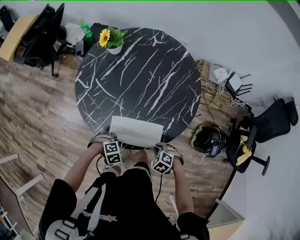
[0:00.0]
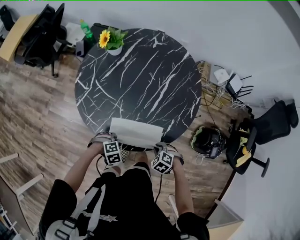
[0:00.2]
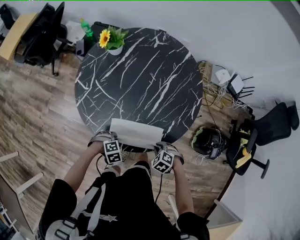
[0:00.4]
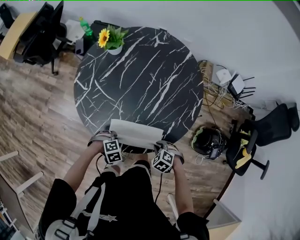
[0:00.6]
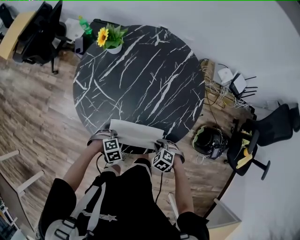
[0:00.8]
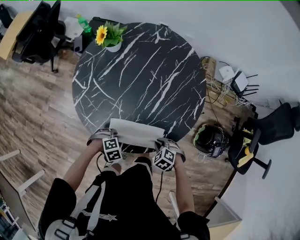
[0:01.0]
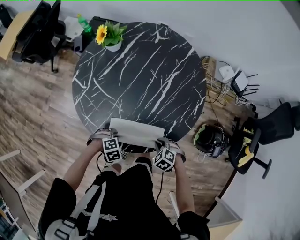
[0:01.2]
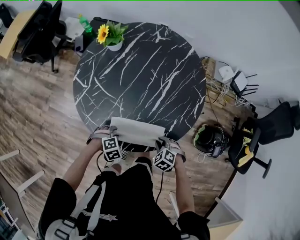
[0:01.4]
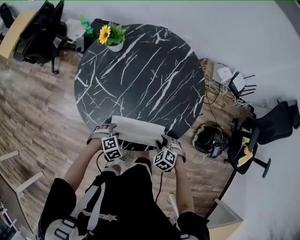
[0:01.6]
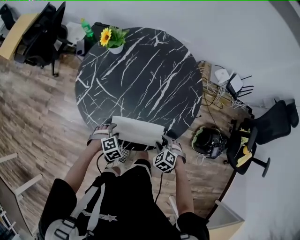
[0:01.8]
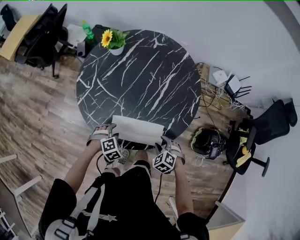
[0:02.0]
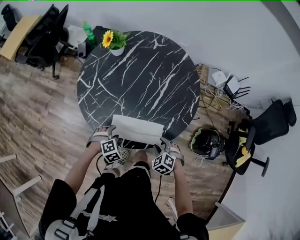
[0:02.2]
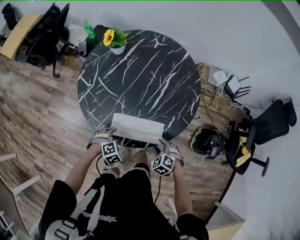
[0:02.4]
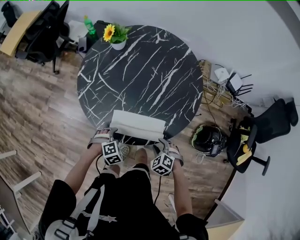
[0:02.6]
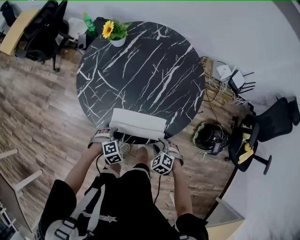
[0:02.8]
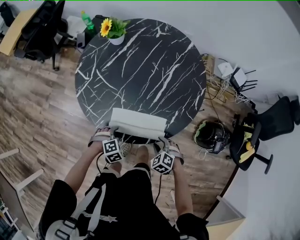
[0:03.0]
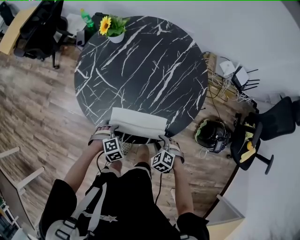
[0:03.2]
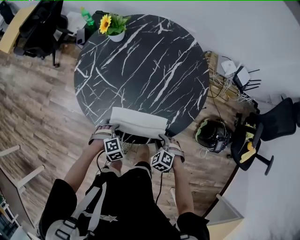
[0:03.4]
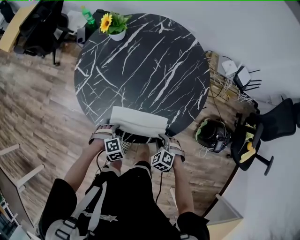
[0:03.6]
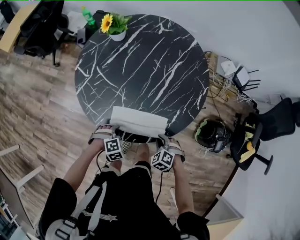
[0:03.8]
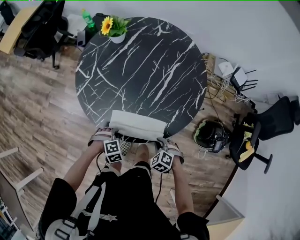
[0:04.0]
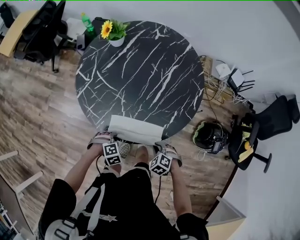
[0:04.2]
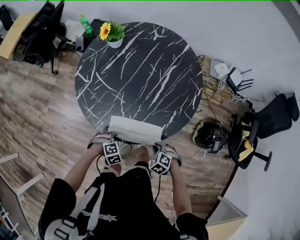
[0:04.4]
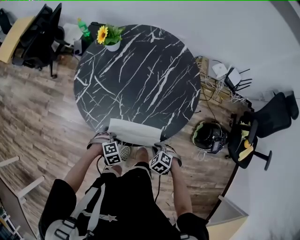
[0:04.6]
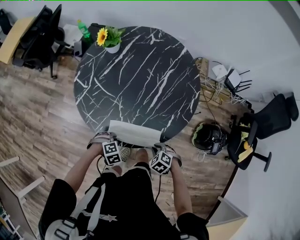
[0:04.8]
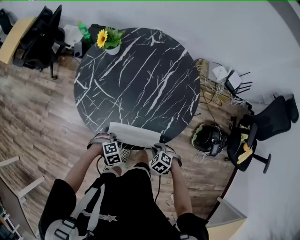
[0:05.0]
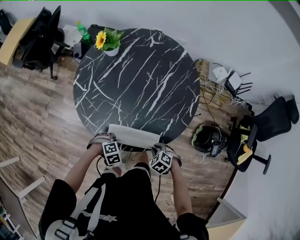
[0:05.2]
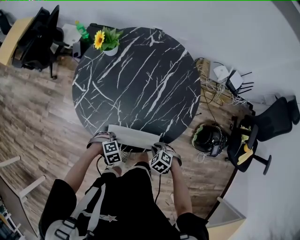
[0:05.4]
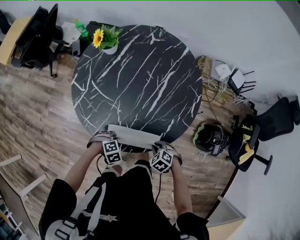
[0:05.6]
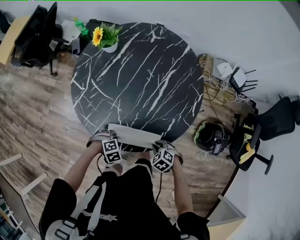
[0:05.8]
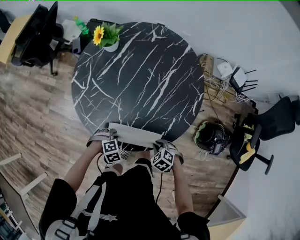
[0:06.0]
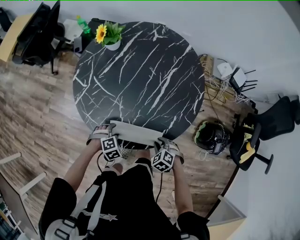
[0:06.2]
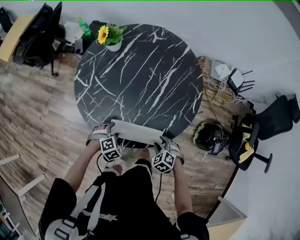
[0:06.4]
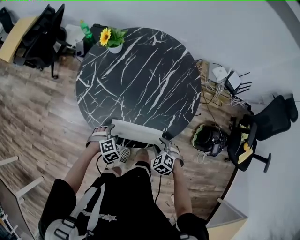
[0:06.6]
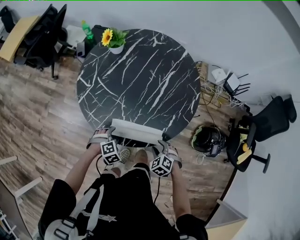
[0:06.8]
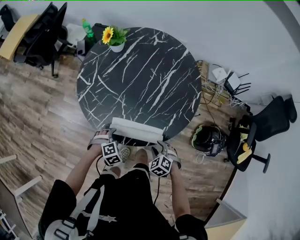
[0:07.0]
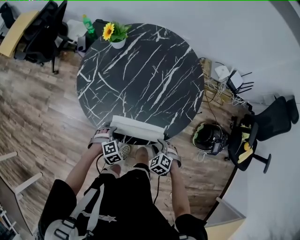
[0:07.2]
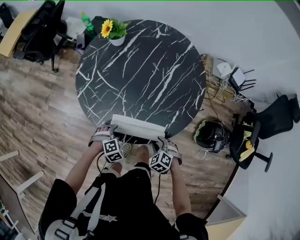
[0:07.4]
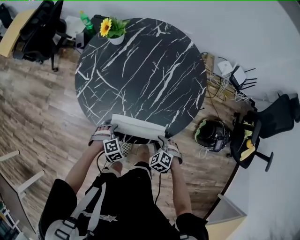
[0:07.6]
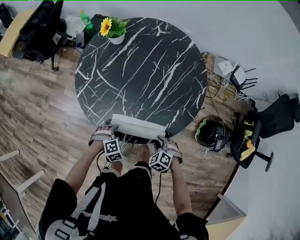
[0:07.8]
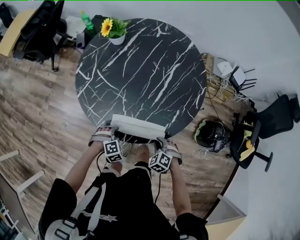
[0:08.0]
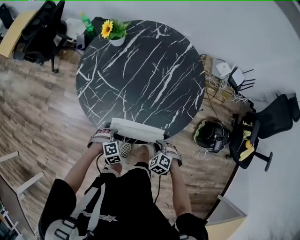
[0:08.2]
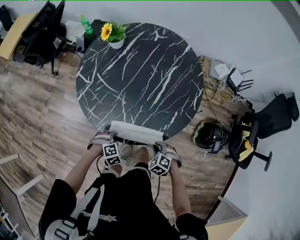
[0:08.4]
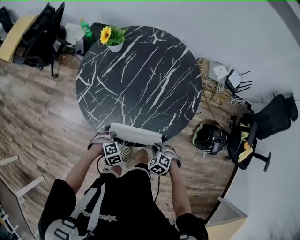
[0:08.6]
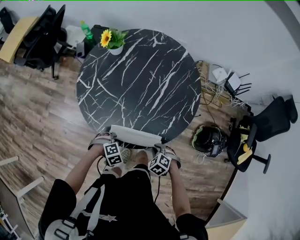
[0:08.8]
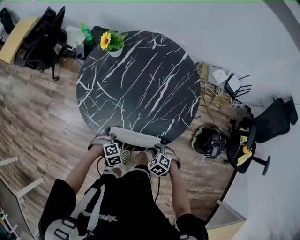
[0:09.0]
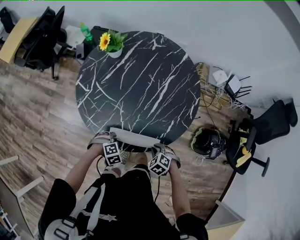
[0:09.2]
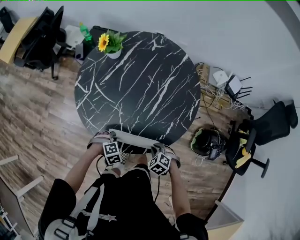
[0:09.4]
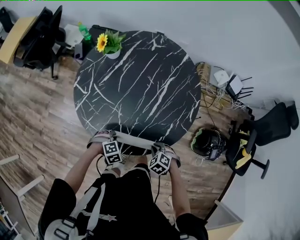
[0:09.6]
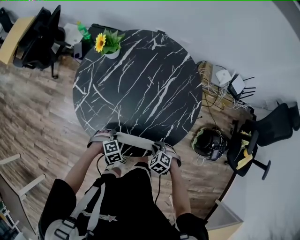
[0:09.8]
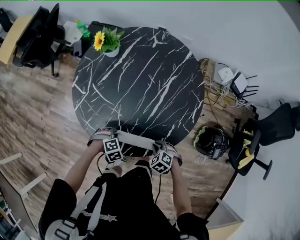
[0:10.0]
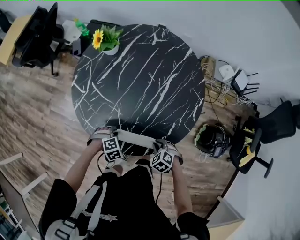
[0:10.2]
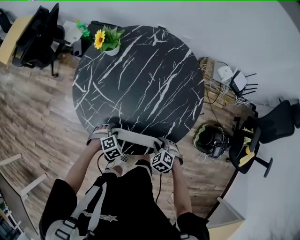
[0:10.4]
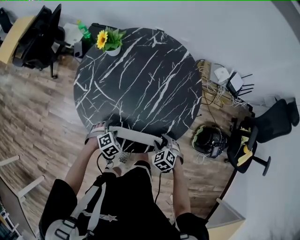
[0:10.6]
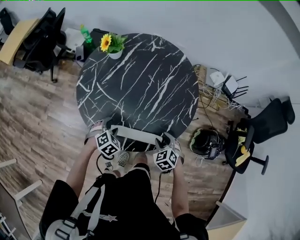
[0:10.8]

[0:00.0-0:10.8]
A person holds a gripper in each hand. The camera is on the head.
0:00.0 to 0:01.6: The left gripper shifts by approximately 5 cm, and opens up, while the right gripper changes place by some 5 cm, and opens up.
0:01.6 to 0:03.0: The right gripper shifts by some 5 cm. Meanwhile the left gripper moves about 5 cm.
0:03.0 to 0:04.6: The left gripper closes, while the right gripper closes up.
0:04.6 to 0:06.2: The left gripper changes place by roughly 5 cm, and opens its fingers. Meanwhile the right gripper moves about 5 cm.
0:06.2 to 0:07.8: The left gripper closes its fingers.
0:07.8 to 0:09.2: The grippers move only a little.
0:09.2 to 0:10.8: The right gripper moves some 10 cm, turns by approximately 20 degrees, and opens, while the left gripper shifts by some 10 cm, turns by approximately 30 degrees, and opens its fingers.

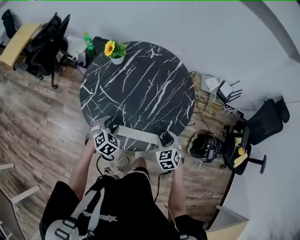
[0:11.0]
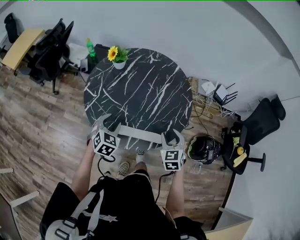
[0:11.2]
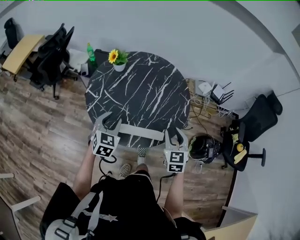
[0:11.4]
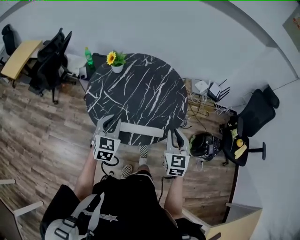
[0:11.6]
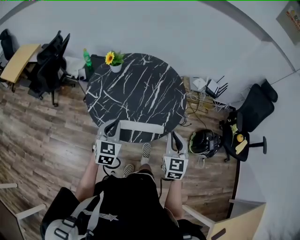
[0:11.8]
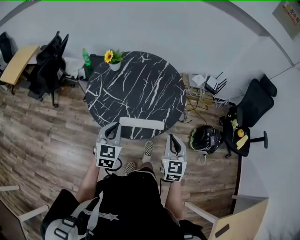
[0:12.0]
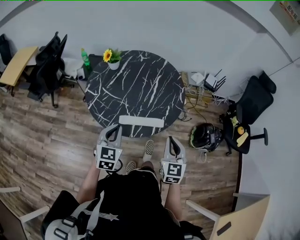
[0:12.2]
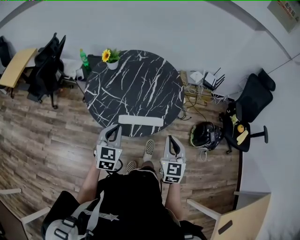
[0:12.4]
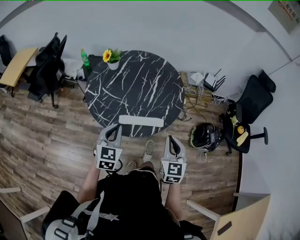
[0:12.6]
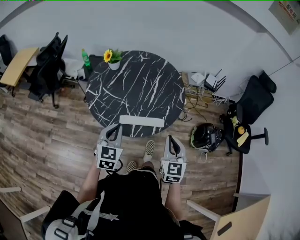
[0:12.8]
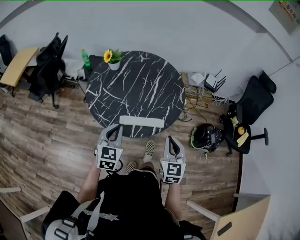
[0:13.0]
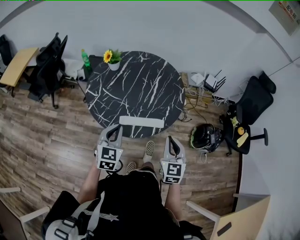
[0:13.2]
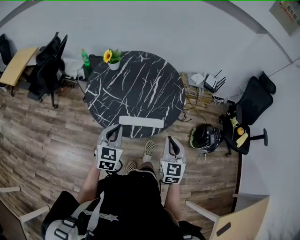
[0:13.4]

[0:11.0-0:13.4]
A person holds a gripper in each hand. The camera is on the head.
0:11.0 to 0:12.2: The left gripper travels upward and backward by about 20 cm, tips its fingers upward by roughly 30 degrees, and closes up; the right gripper goes about 25 cm backward and upward, points its fingers roughly 30 degrees further upward, and closes.
0:12.2 to 0:13.4: Both grippers stay put.

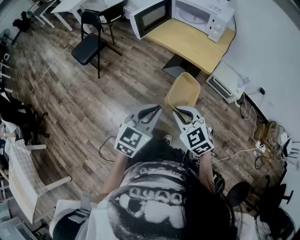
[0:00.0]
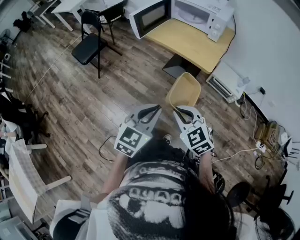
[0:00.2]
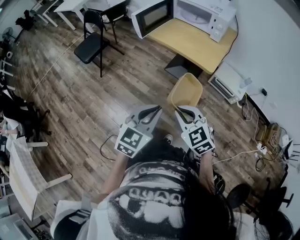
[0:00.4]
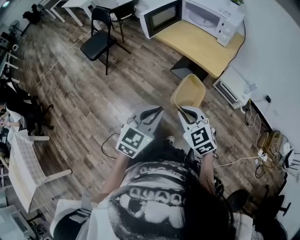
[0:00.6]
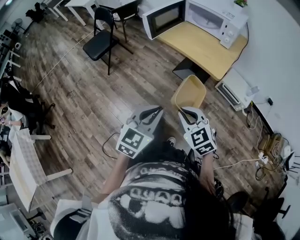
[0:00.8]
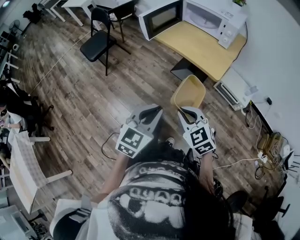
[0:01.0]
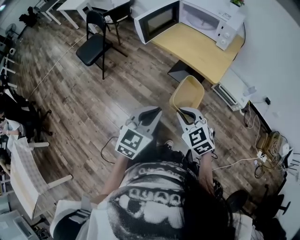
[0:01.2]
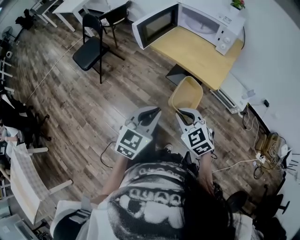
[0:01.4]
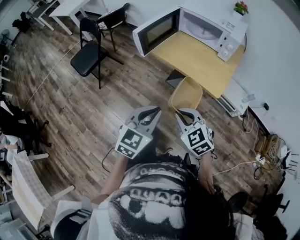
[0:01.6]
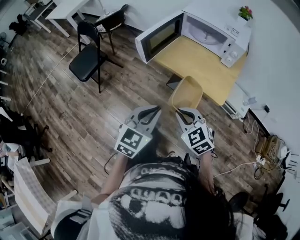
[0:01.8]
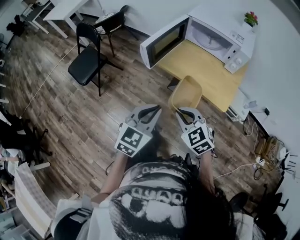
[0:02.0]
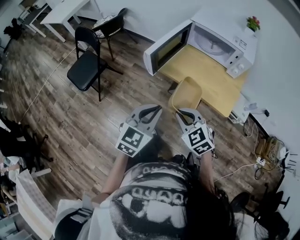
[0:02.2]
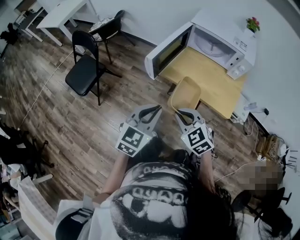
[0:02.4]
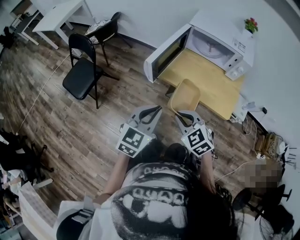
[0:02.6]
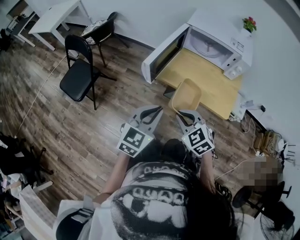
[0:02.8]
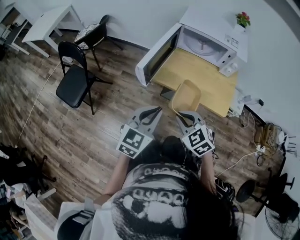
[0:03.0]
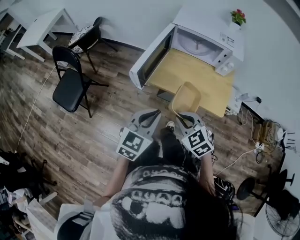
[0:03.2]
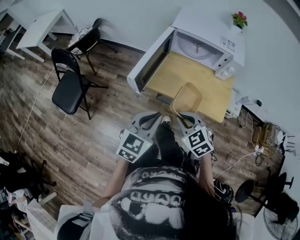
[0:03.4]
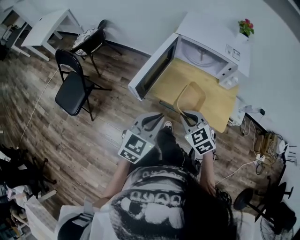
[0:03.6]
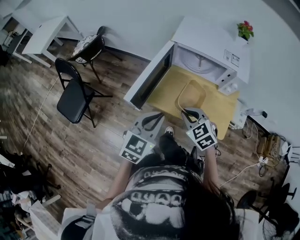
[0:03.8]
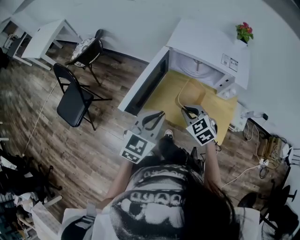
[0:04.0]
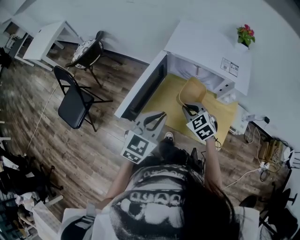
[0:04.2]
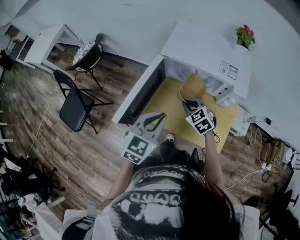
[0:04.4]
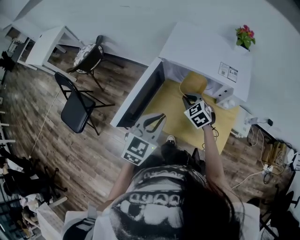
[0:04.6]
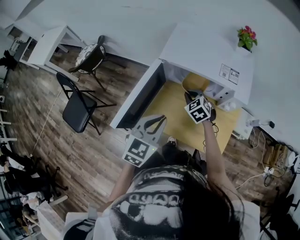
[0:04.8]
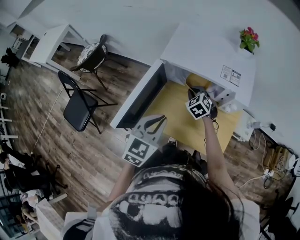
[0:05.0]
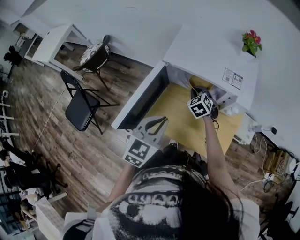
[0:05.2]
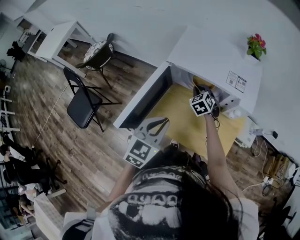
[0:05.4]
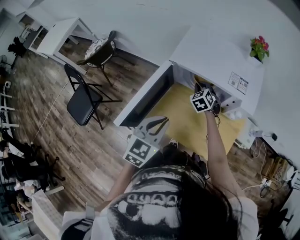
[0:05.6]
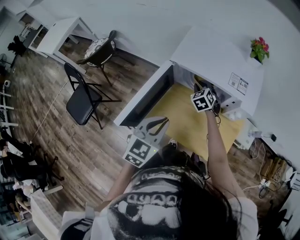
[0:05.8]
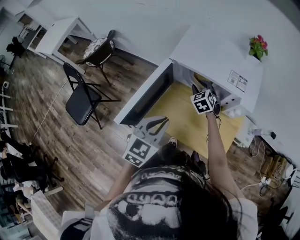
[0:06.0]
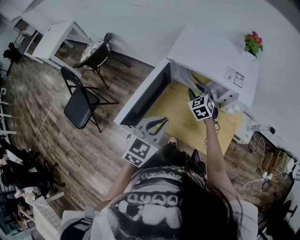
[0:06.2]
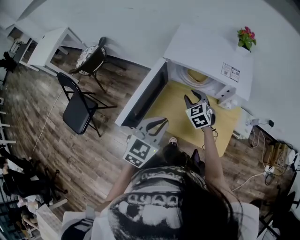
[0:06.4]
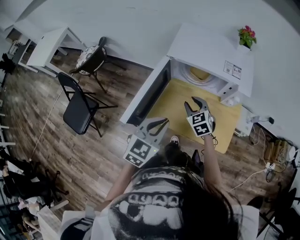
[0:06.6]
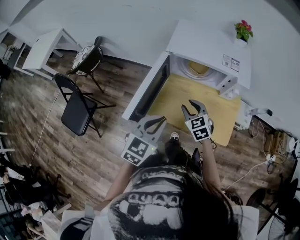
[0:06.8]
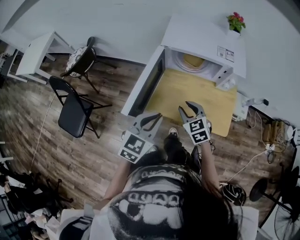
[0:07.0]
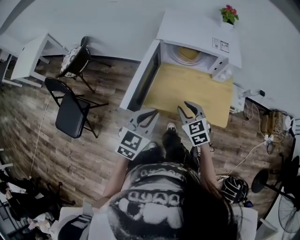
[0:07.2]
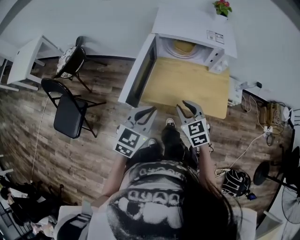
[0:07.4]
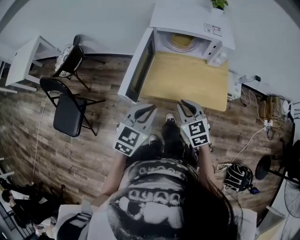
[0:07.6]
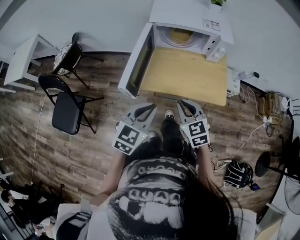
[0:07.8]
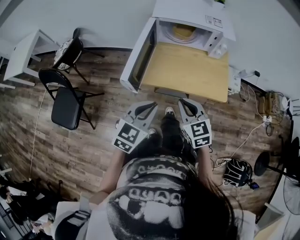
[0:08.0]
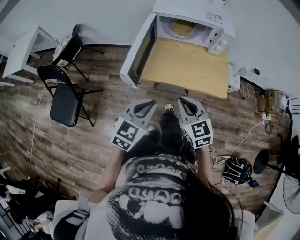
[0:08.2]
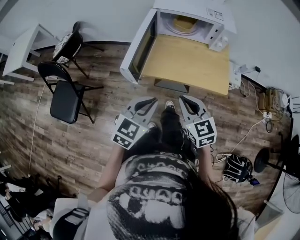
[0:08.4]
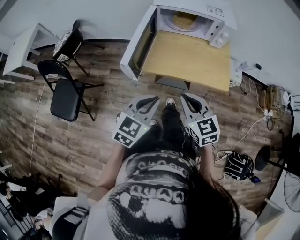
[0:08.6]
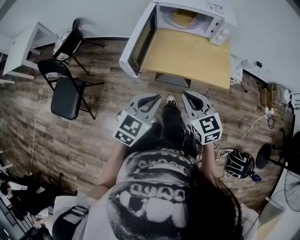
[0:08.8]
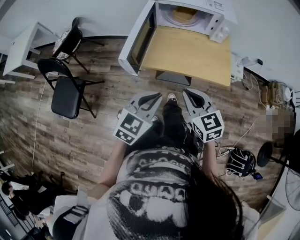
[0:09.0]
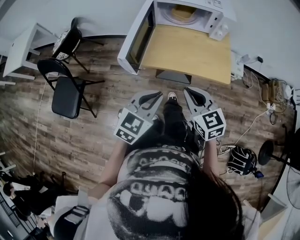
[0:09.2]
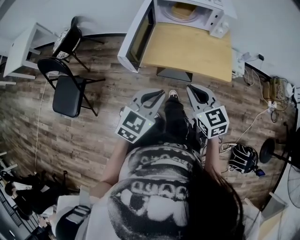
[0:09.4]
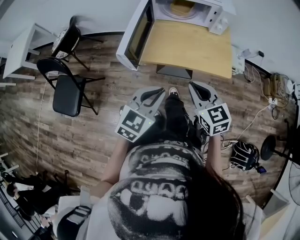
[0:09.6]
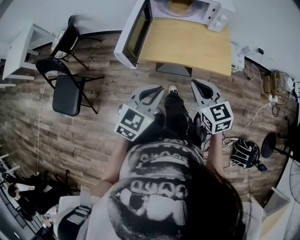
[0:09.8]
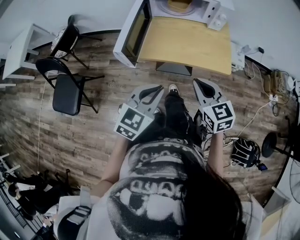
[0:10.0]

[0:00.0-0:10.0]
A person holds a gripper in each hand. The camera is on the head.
0:00.0 to 0:01.4: The two grippers go some 10 cm forward.
0:01.4 to 0:02.8: The grippers both shift forward and to the left by approximately 30 cm.
0:02.8 to 0:04.2: Both grippers move forward and to the right, about 25 cm.
0:04.2 to 0:05.8: The right gripper moves forward, about 20 cm.
0:05.8 to 0:07.2: The right gripper travels backward by approximately 30 cm, and swivels approximately 20 degrees, while the left gripper is displaced backward and to the left by some 10 cm.
0:07.2 to 0:08.6: Both grippers move backward, some 15 cm. The right gripper closes its fingers.
0:08.6 to 0:10.0: The right gripper travels to the right by roughly 5 cm.
